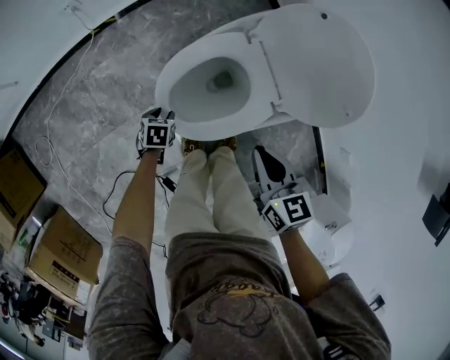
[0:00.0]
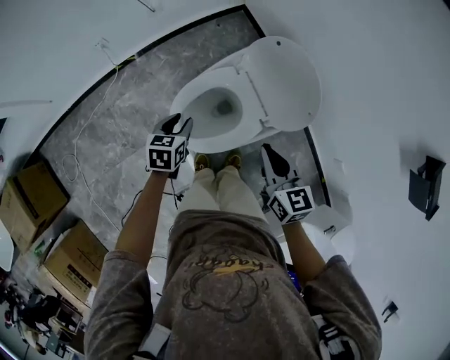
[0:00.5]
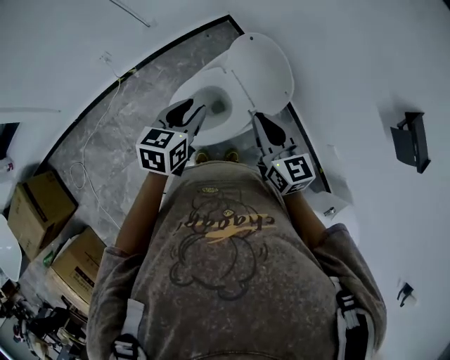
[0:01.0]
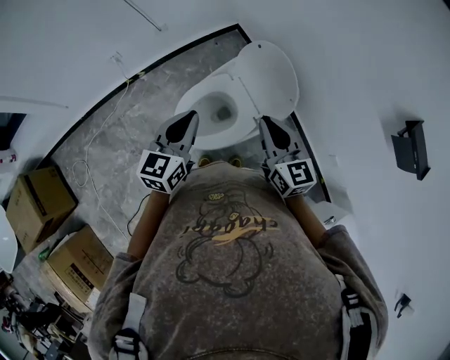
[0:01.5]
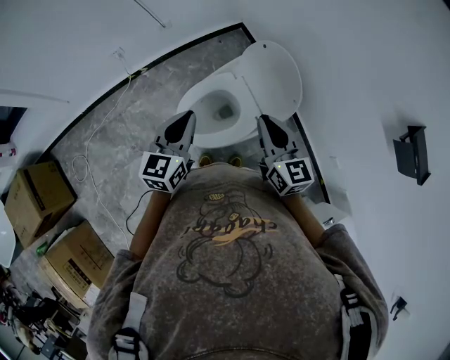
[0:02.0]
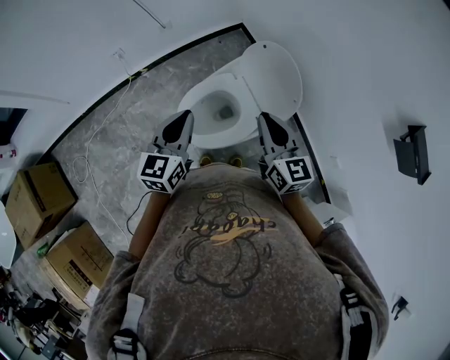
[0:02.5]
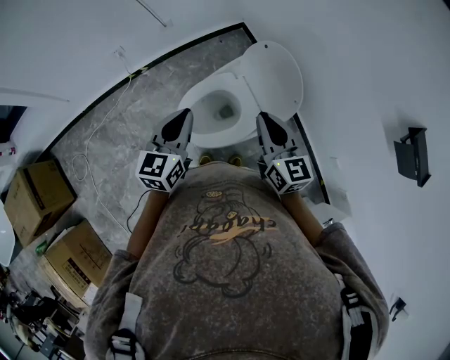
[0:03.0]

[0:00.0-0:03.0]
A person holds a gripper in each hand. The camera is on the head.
0:00.0 to 0:01.5: The right gripper heads upward, covering some 25 cm, and rotates approximately 30 degrees. The left gripper is displaced upward by some 50 cm, angles its fingers upward, by approximately 60 degrees, and closes up.
0:01.5 to 0:03.0: There are only small adjustments of the grippers.

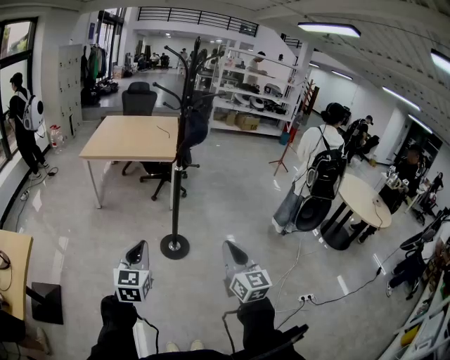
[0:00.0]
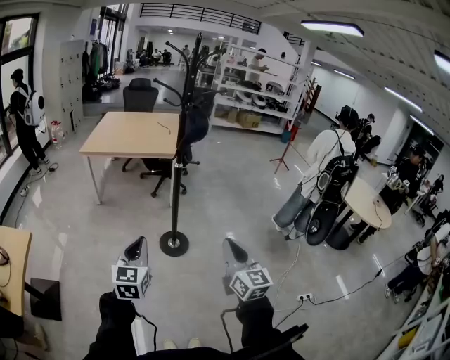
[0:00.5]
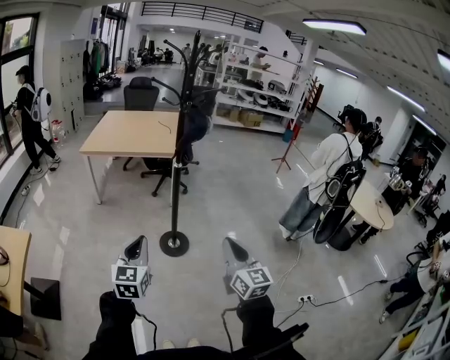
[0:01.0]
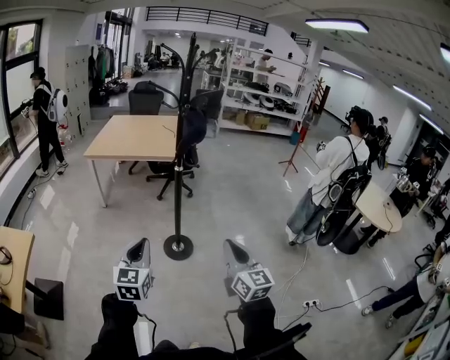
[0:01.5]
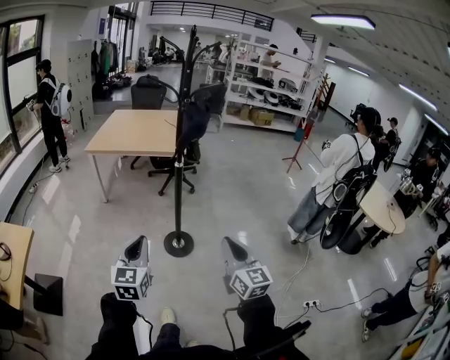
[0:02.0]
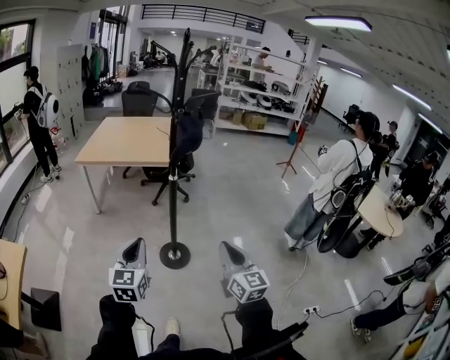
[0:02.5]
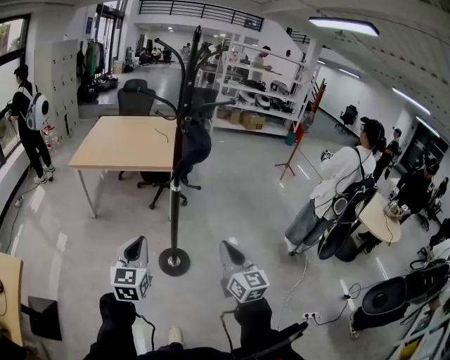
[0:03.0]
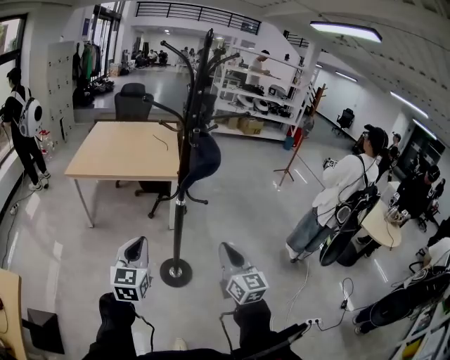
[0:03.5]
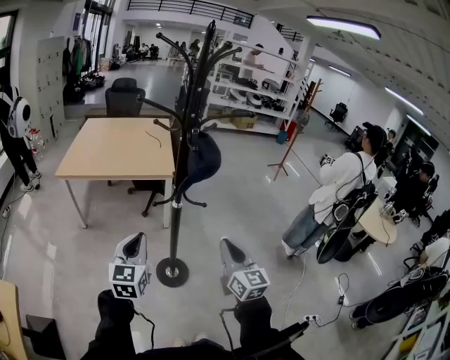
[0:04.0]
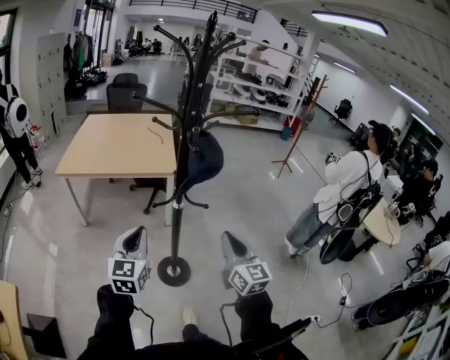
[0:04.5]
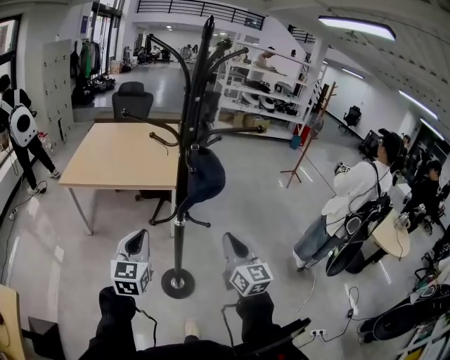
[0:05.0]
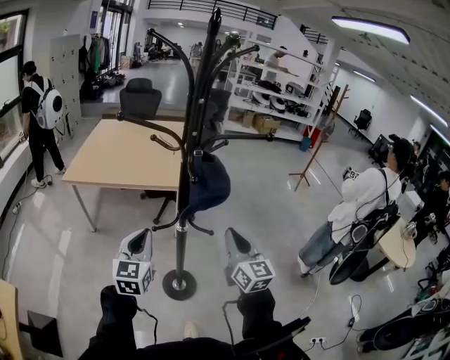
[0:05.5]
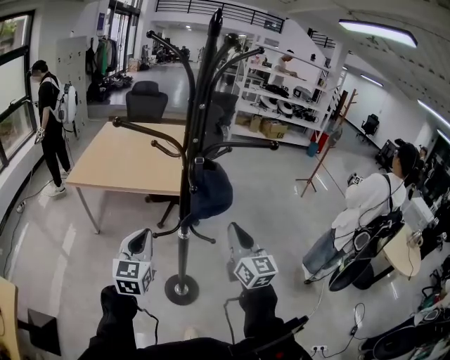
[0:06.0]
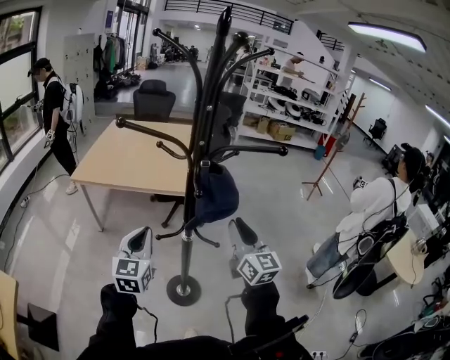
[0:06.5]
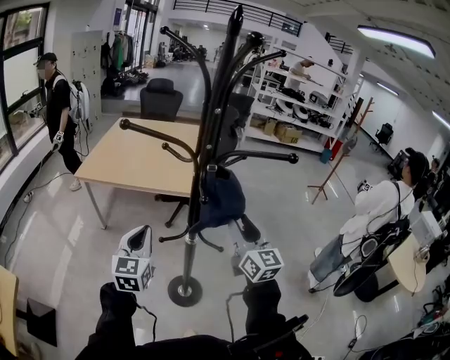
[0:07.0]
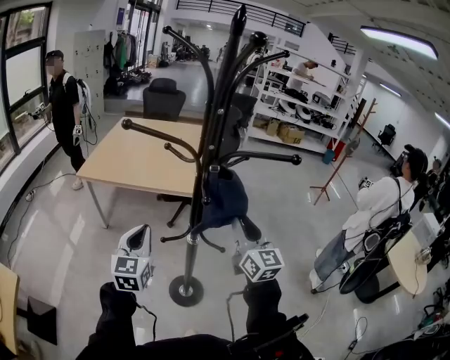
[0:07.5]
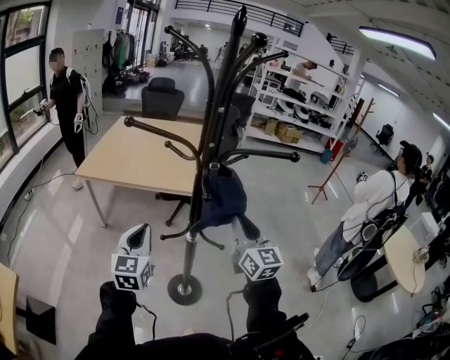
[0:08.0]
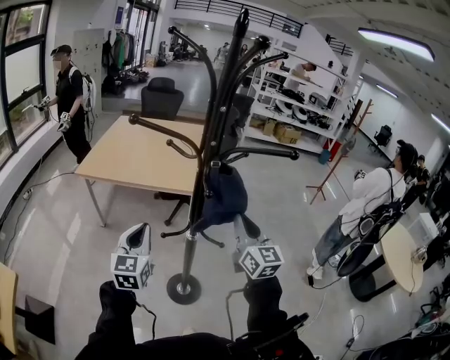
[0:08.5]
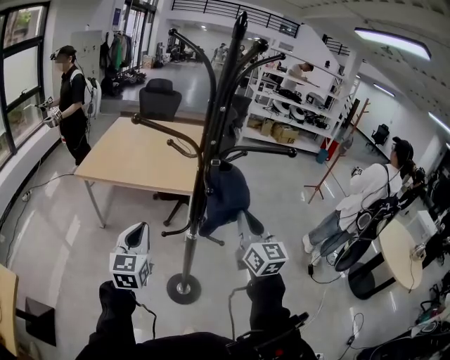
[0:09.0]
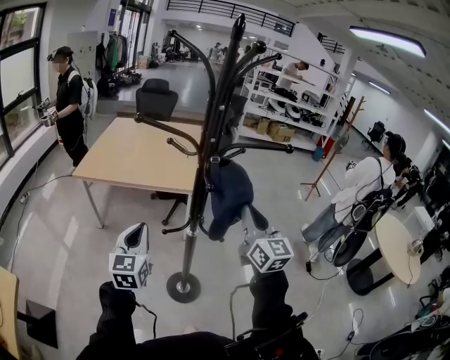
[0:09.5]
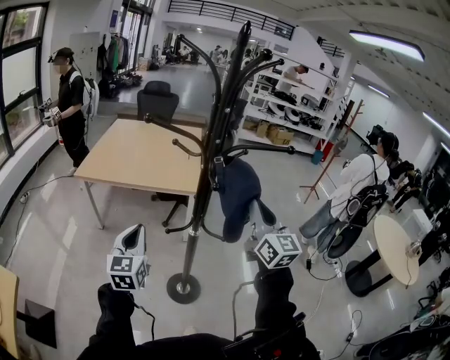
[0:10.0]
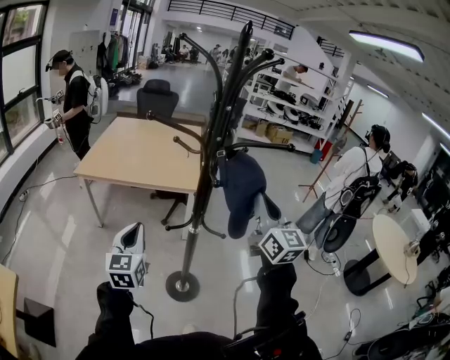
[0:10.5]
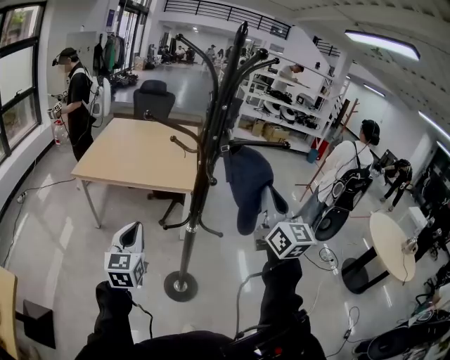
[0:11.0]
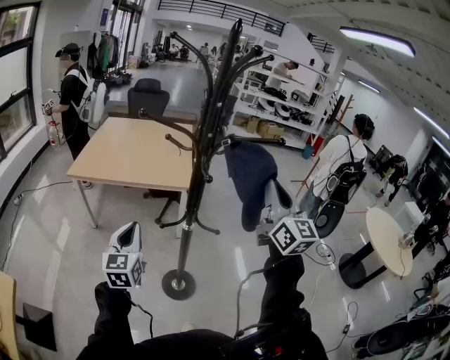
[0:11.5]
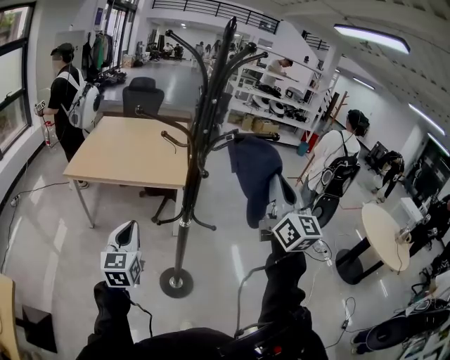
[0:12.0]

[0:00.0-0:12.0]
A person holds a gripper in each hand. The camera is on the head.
0:00.0 to 0:02.0: The right gripper changes place by approximately 5 cm. The left gripper shifts by roughly 5 cm.
0:02.0 to 0:04.0: The two grippers go about 30 cm forward.
0:04.0 to 0:06.0: The two grippers go approximately 20 cm forward.
0:06.0 to 0:08.0: The right gripper ends up about 5 cm from where it was, and opens, then closes again.
0:08.0 to 0:10.0: The right gripper shifts roughly 10 cm upward, while the left gripper ends up approximately 5 cm from where it was.
0:10.0 to 0:12.0: The right gripper is displaced upward, to the right and backward by approximately 10 cm.

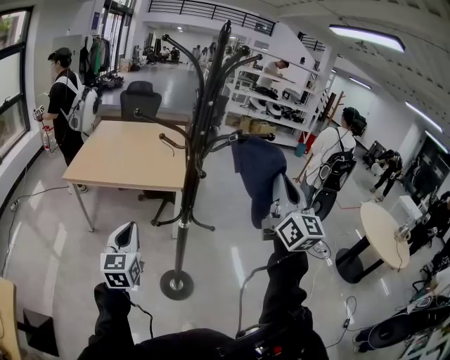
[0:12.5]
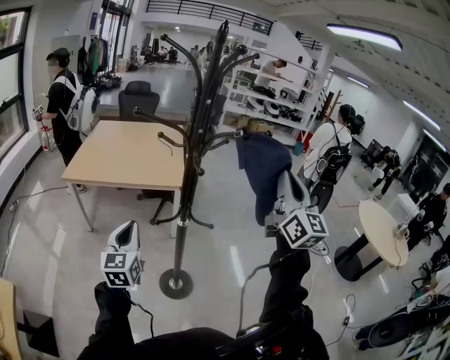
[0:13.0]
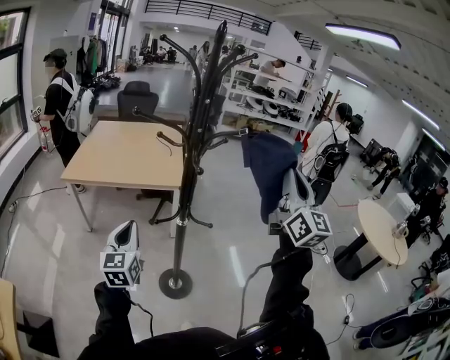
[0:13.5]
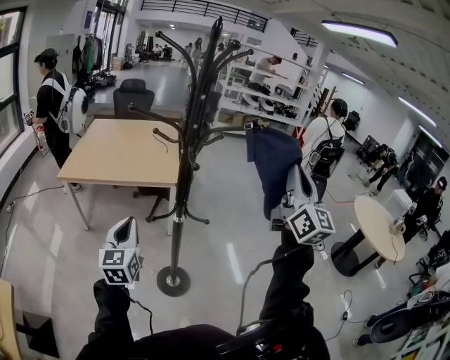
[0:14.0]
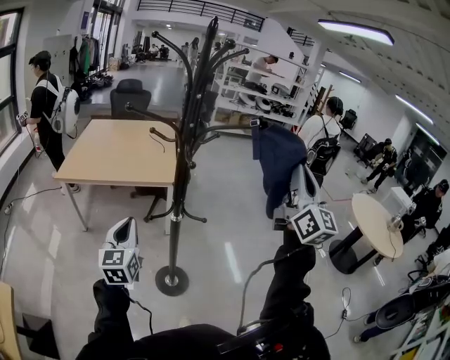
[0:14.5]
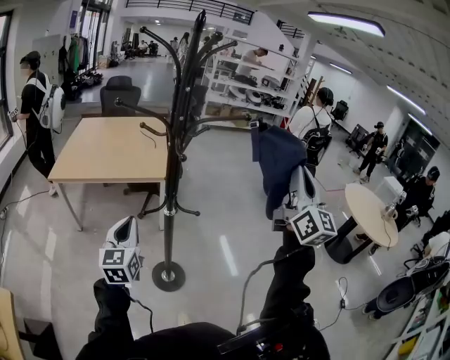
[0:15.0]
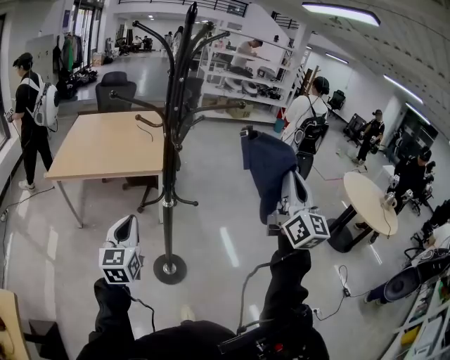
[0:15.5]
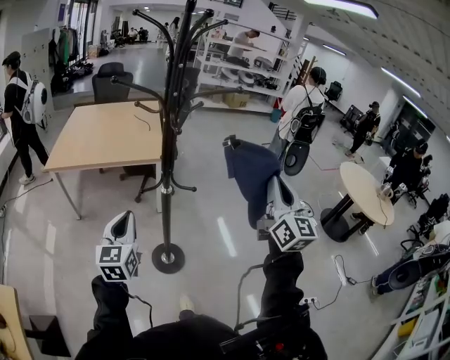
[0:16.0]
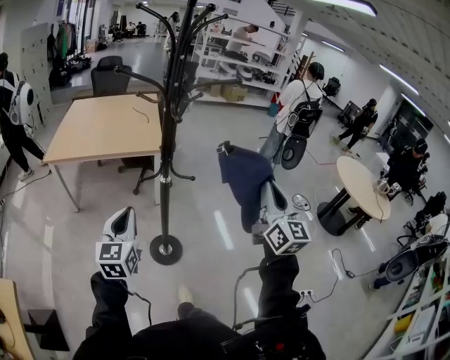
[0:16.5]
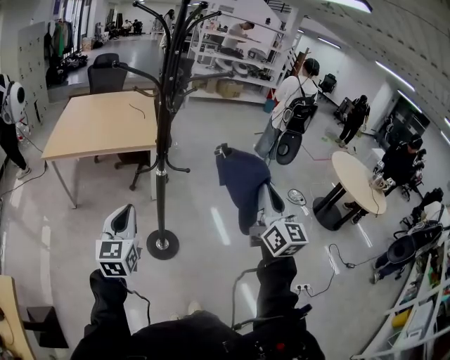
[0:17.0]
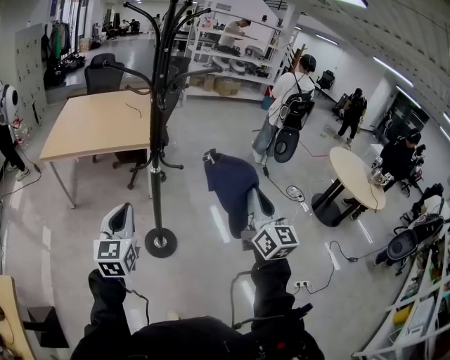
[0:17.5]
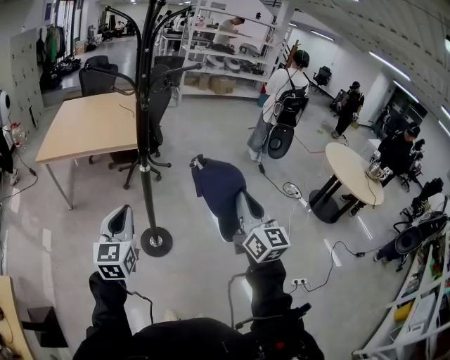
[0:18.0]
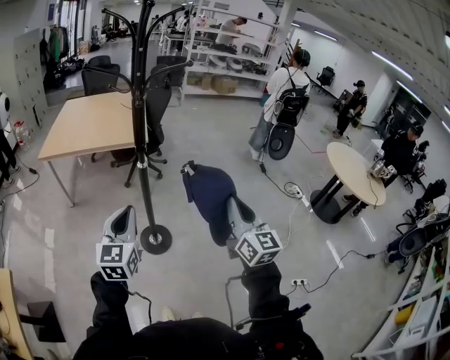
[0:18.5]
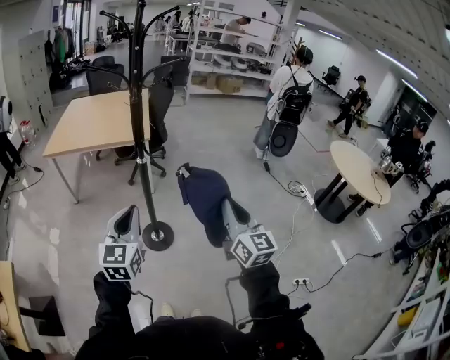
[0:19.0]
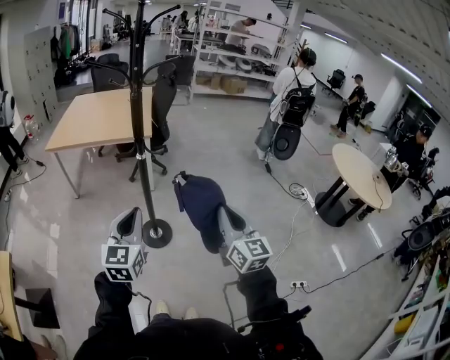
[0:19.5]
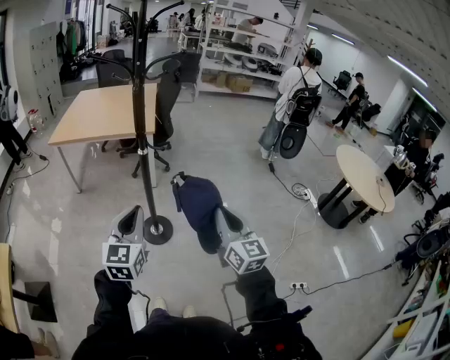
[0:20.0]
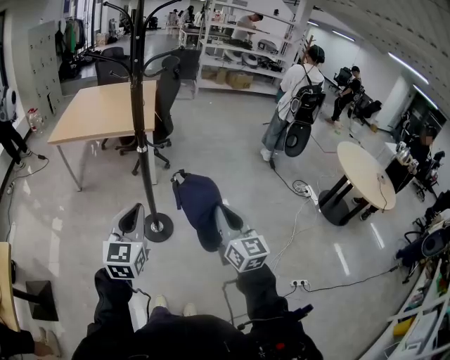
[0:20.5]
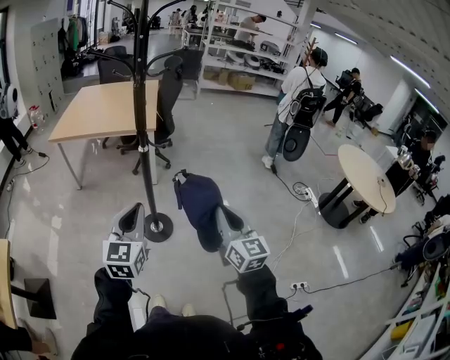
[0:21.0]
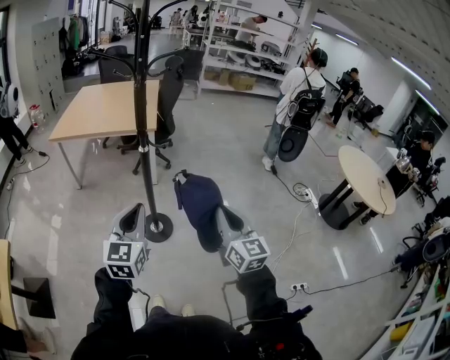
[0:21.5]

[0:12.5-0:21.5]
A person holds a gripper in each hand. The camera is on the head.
0:12.5 to 0:14.5: The right gripper heads to the right, covering about 5 cm.
0:14.5 to 0:17.0: The left gripper travels backward and to the right by approximately 15 cm, while the right gripper travels downward and backward by some 20 cm.
0:17.0 to 0:19.5: The right gripper goes about 15 cm downward and backward. The left gripper goes roughly 20 cm to the right and backward.
0:19.5 to 0:21.5: The grippers move only a little.

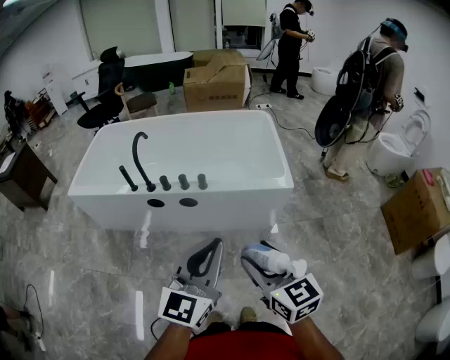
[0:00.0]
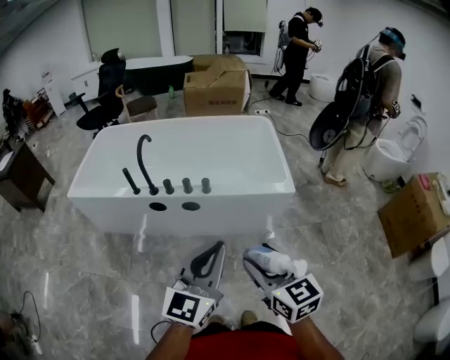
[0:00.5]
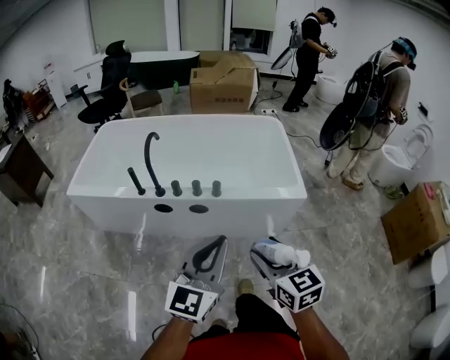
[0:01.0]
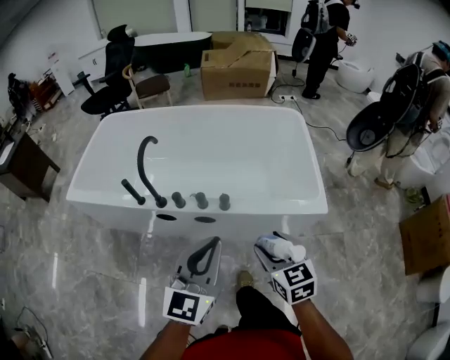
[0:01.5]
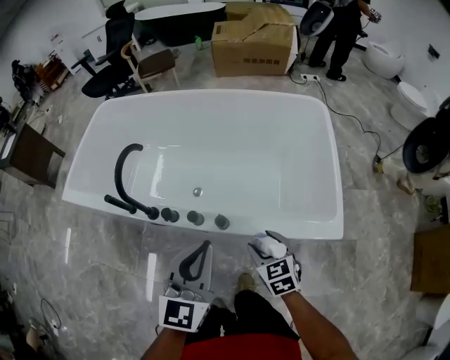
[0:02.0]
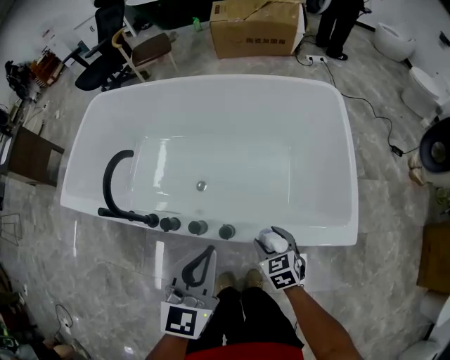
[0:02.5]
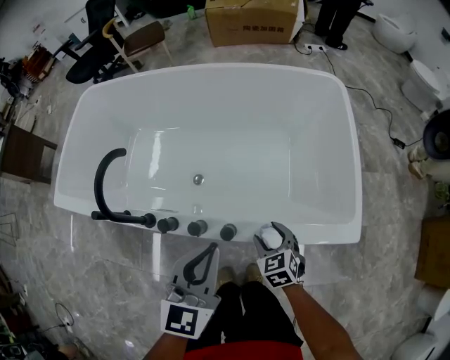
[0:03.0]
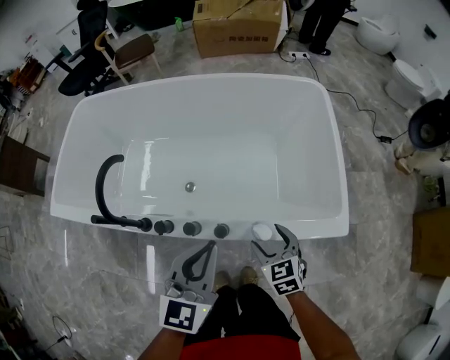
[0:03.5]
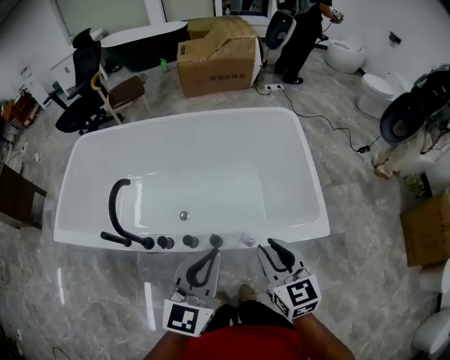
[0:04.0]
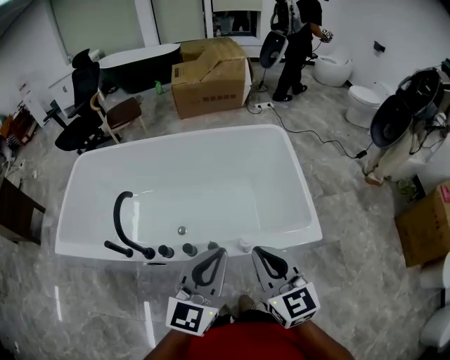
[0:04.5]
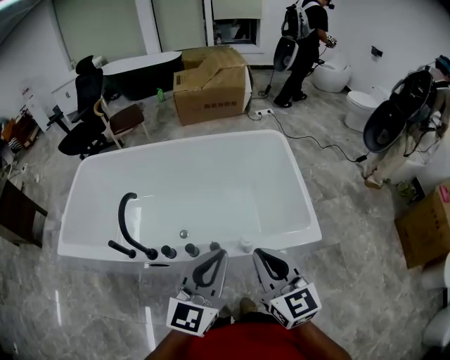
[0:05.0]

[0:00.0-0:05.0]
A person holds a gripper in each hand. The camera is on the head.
0:00.0 to 0:02.5: The pair of grippers is taken forward, some 50 cm. The left gripper heads downward, covering some 20 cm, and rotates approximately 30 degrees; the right gripper travels downward by roughly 35 cm, and tips its fingers downward by about 30 degrees.
0:02.5 to 0:05.0: The right gripper travels upward by some 35 cm, points its fingers approximately 40 degrees further upward, and closes up; the left gripper heads upward and backward, covering some 15 cm, and swivels about 30 degrees.
